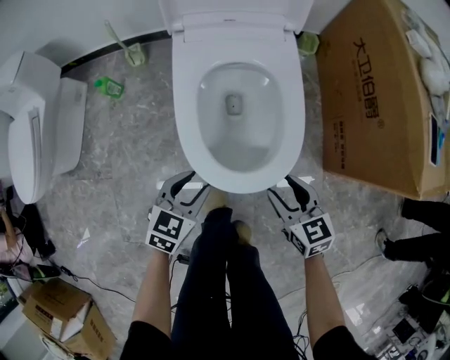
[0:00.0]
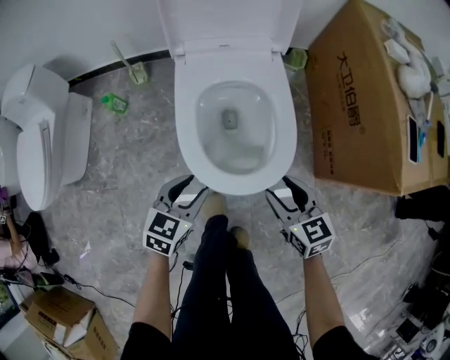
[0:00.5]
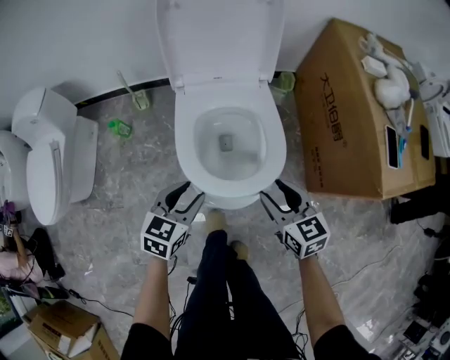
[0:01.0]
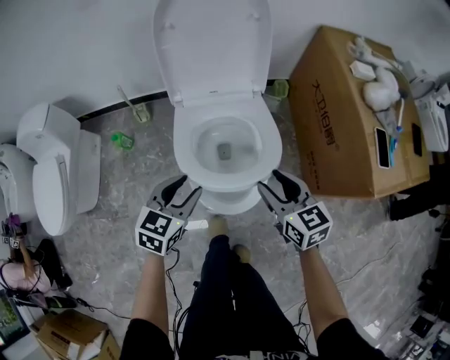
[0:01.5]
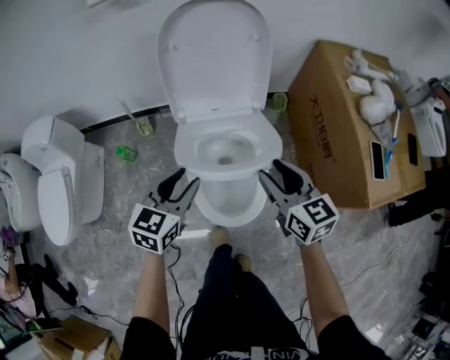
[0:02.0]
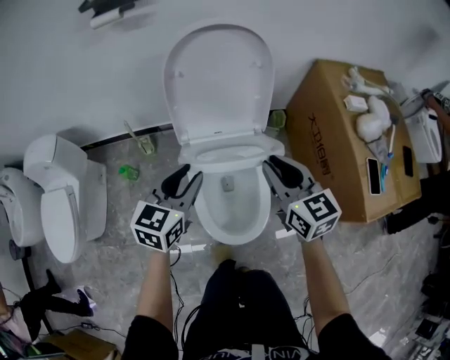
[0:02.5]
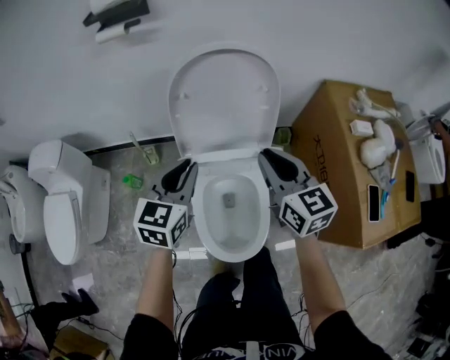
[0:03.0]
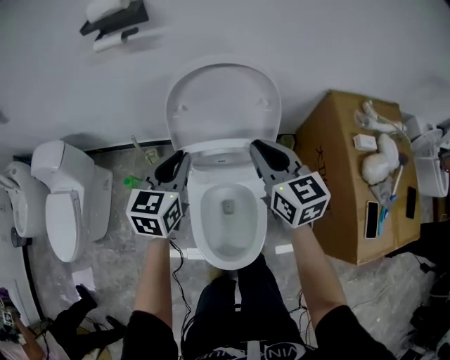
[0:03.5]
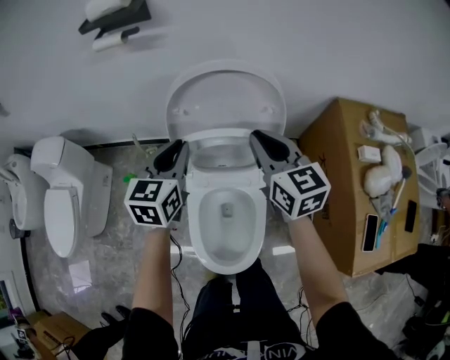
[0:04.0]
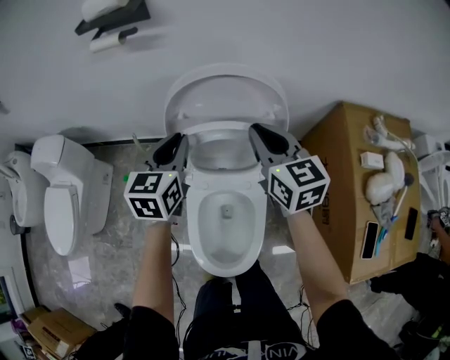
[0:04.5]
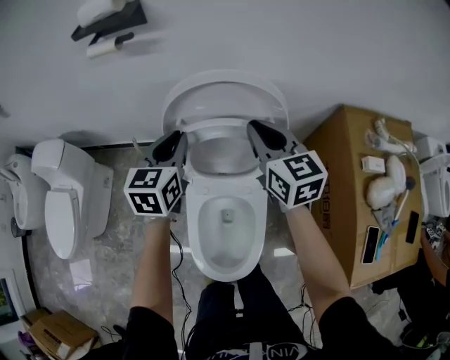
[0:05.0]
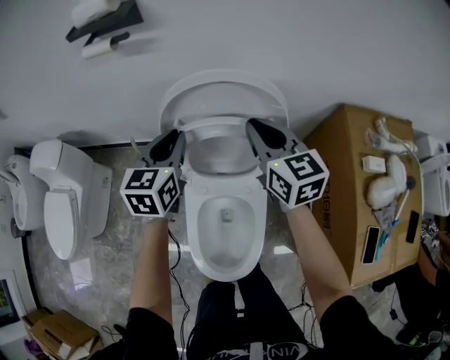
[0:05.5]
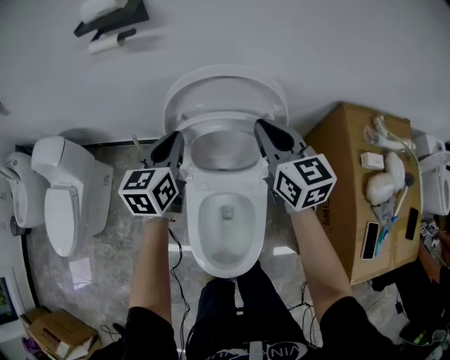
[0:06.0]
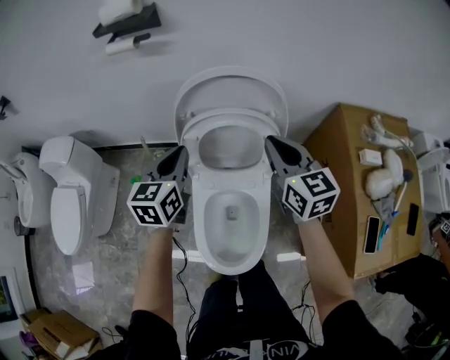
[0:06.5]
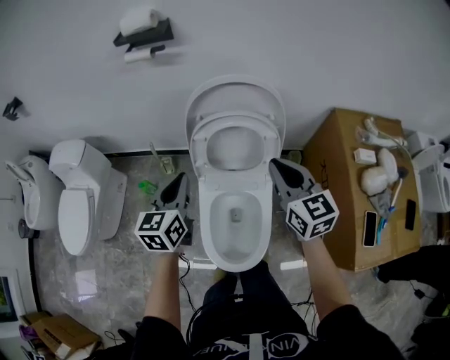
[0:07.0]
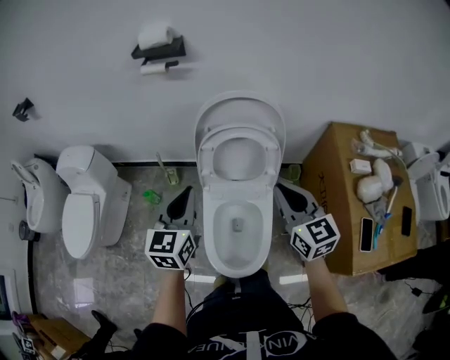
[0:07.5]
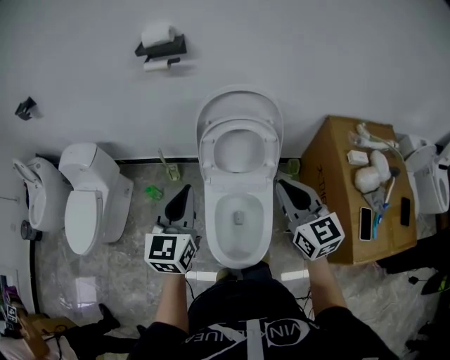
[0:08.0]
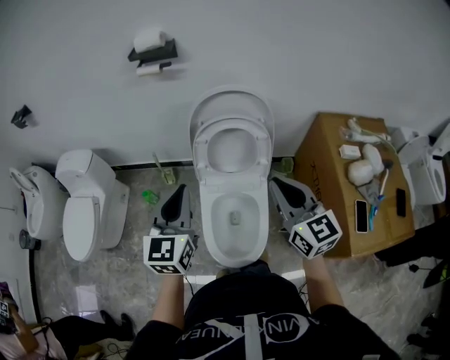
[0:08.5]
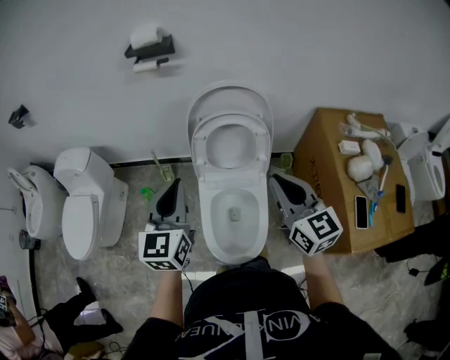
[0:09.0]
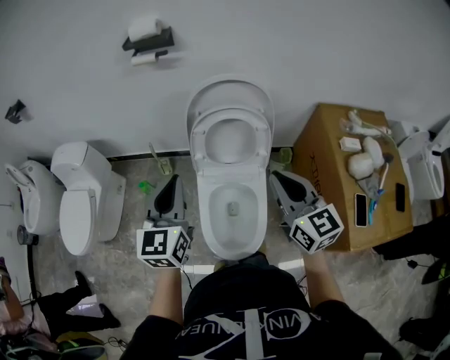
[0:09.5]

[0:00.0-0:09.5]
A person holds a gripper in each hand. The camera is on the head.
0:00.0 to 0:02.0: The grippers both shift upward and forward by roughly 35 cm.
0:02.0 to 0:04.0: The grippers both shift forward and upward by some 30 cm. The right gripper closes its fingers. The left gripper changes its angle by about 20 degrees, and closes its fingers.
0:04.0 to 0:05.5: The grippers both shift forward by about 5 cm.
0:05.5 to 0:07.5: The two grippers go about 20 cm backward.
0:07.5 to 0:09.5: The right gripper is displaced backward by about 5 cm; the left gripper shifts some 5 cm upward.

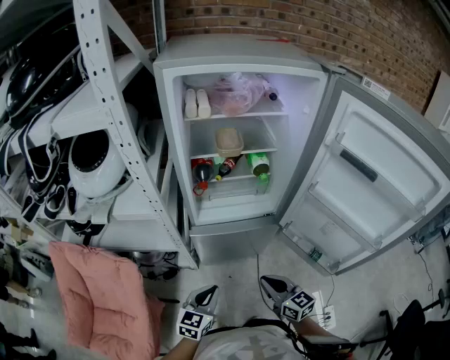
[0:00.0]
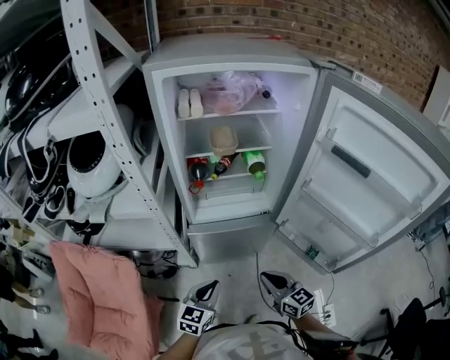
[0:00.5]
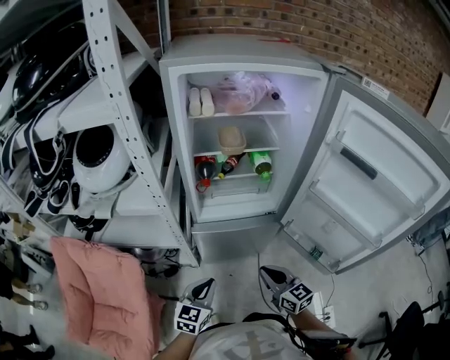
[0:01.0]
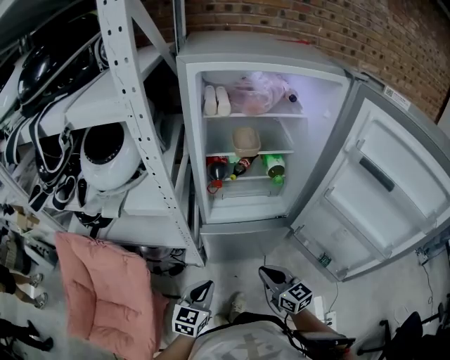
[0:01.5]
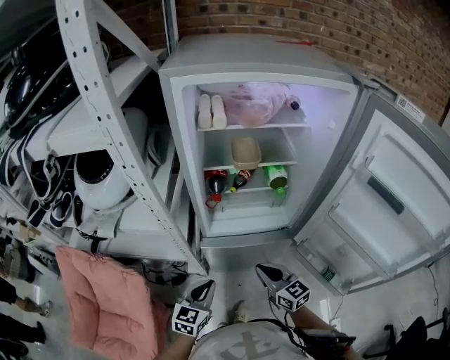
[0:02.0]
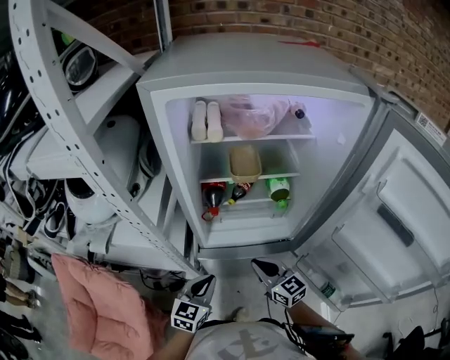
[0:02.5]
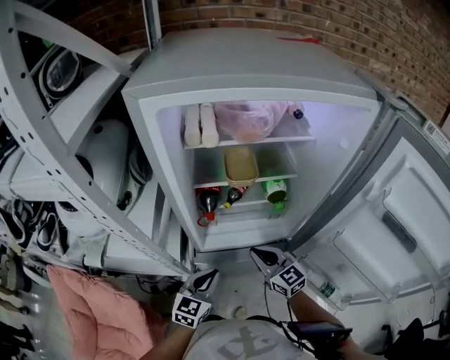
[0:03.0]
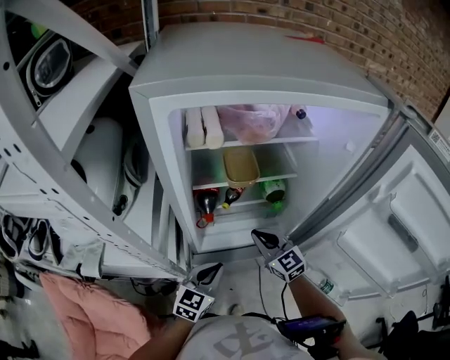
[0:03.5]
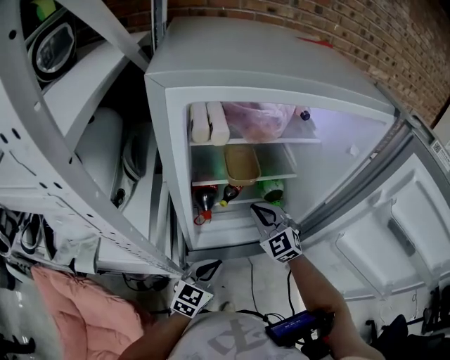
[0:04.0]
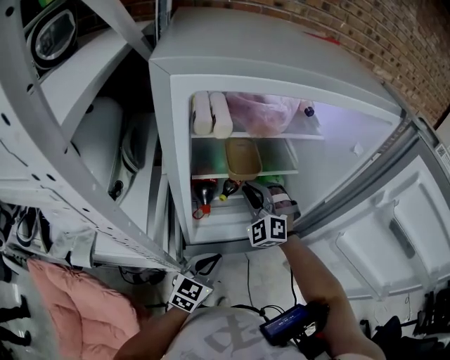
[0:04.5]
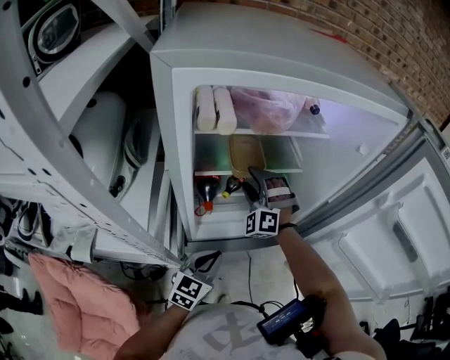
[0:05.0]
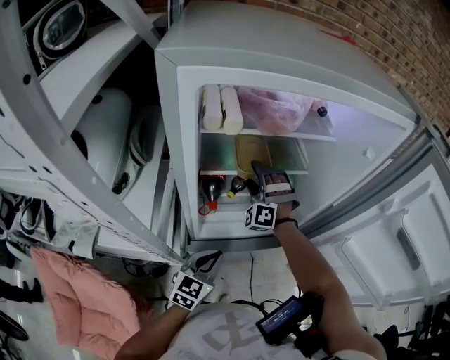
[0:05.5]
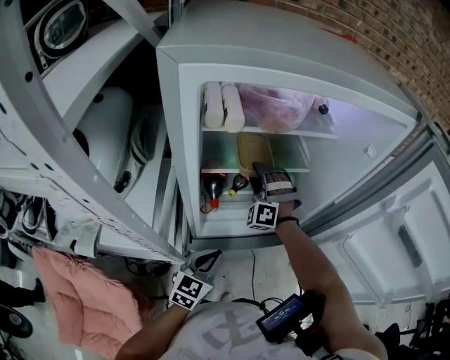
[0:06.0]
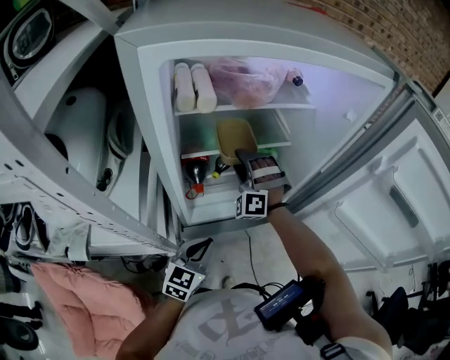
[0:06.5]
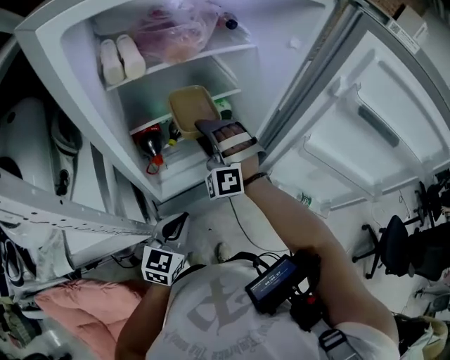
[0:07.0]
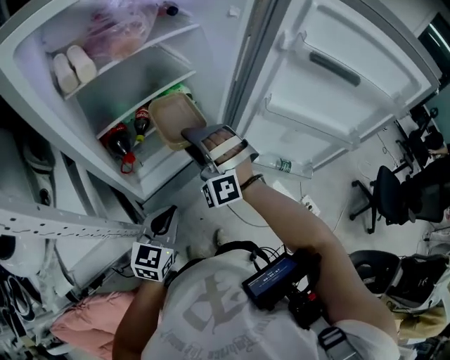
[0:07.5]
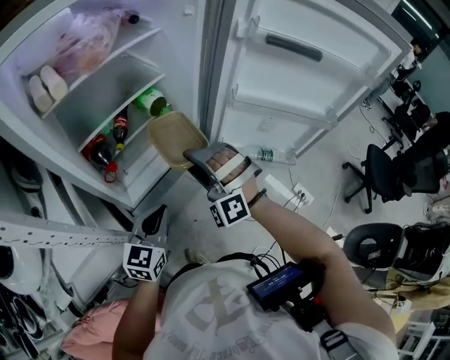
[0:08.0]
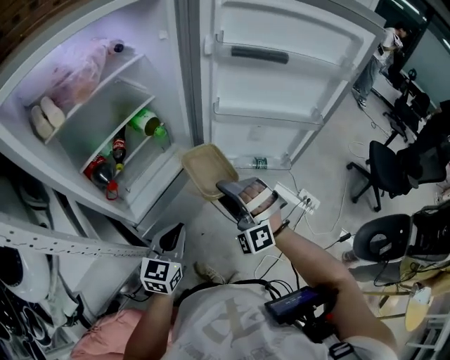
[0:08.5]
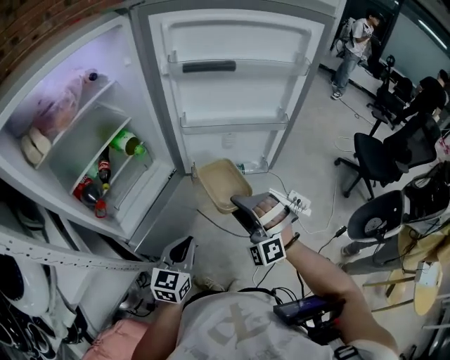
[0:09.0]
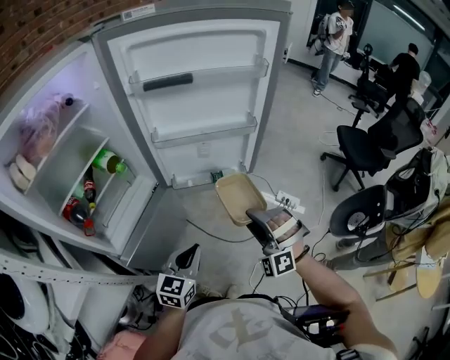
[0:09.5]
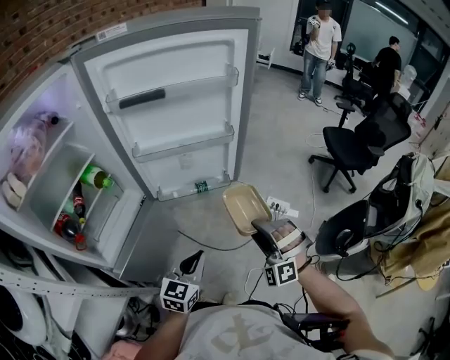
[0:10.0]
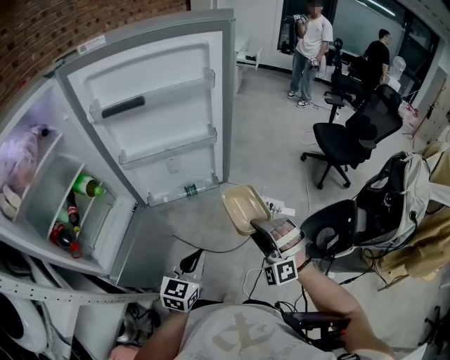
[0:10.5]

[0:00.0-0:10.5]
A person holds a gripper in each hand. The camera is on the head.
0:00.0 to 0:02.0: The two grippers go approximately 10 cm forward.
0:02.0 to 0:04.0: The left gripper travels forward by approximately 15 cm. Meanwhile the right gripper is displaced forward by roughly 30 cm, and rolls counterclockwise, seen from behind, by roughly 40 degrees.
0:04.0 to 0:06.5: The right gripper moves forward, roughly 5 cm, rotates around the line of its fingers by about 40 degrees, counterclockwise from behind, and opens its fingers.
0:06.5 to 0:08.5: The right gripper goes some 35 cm to the right and backward, and changes its angle by some 20 degrees; the left gripper is displaced to the right and backward by about 15 cm, and changes its angle by roughly 30 degrees.
0:08.5 to 0:10.5: The right gripper ends up roughly 35 cm from where it was, and turns by about 30 degrees; the left gripper shifts by approximately 25 cm, and changes its angle by roughly 20 degrees.

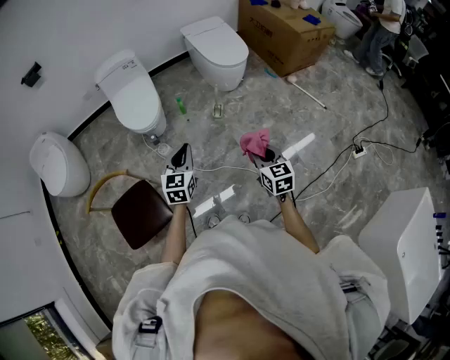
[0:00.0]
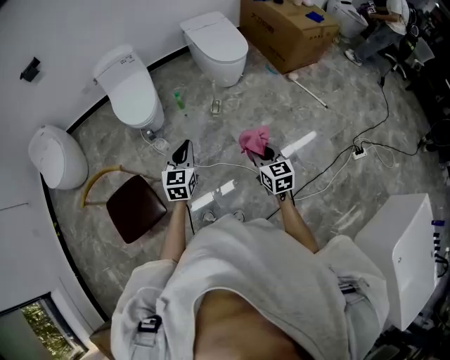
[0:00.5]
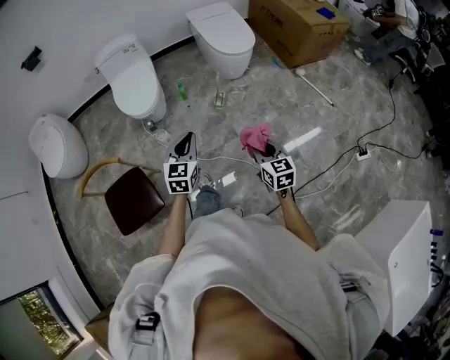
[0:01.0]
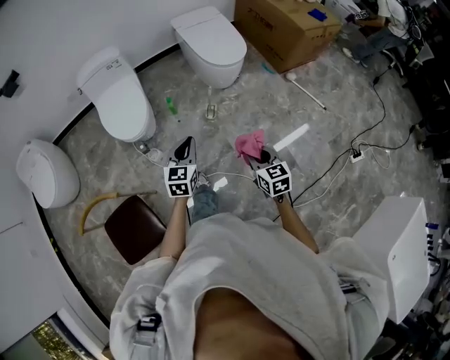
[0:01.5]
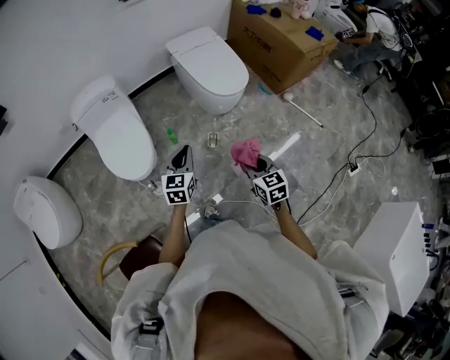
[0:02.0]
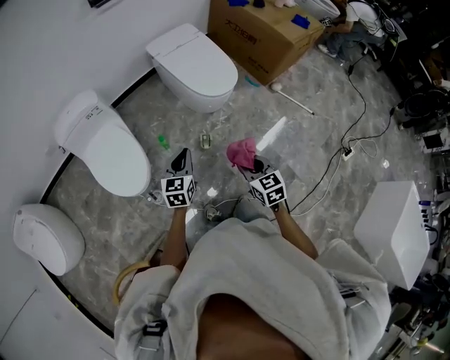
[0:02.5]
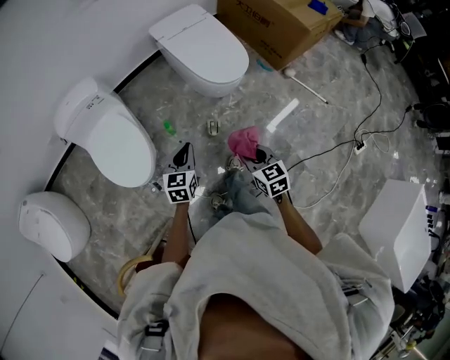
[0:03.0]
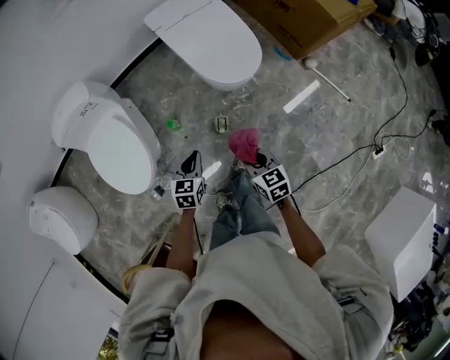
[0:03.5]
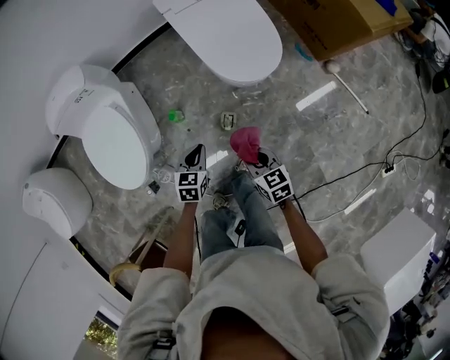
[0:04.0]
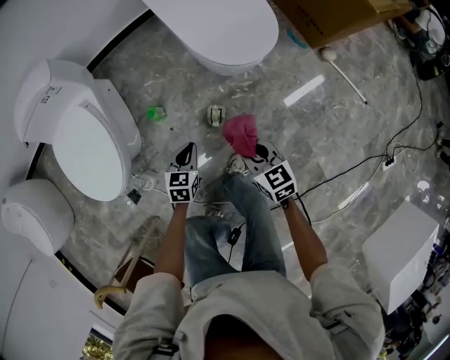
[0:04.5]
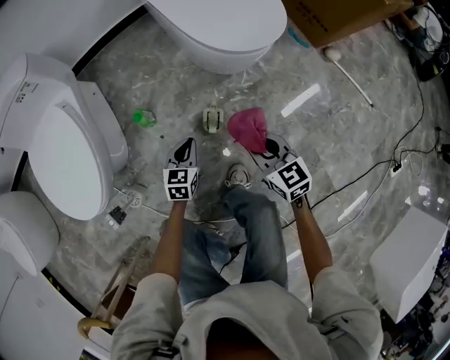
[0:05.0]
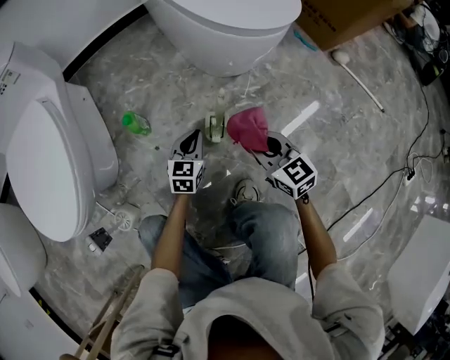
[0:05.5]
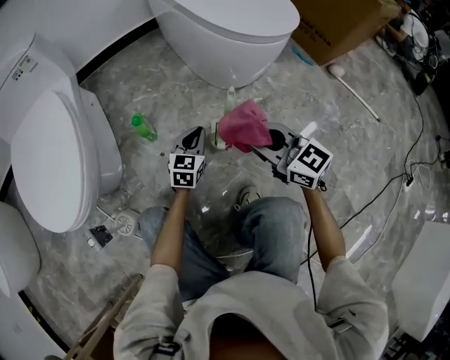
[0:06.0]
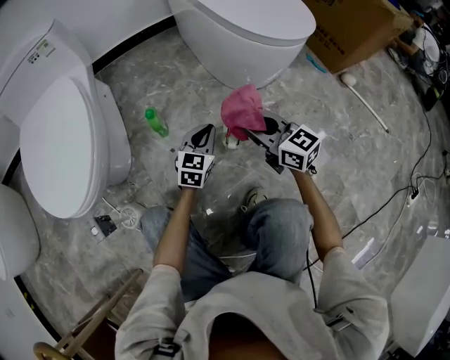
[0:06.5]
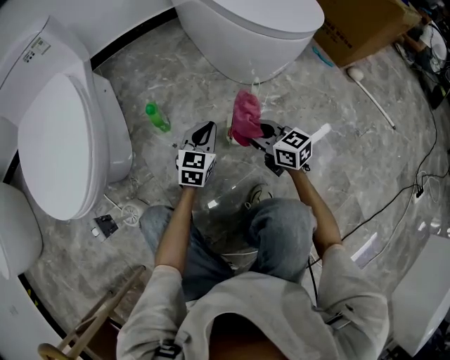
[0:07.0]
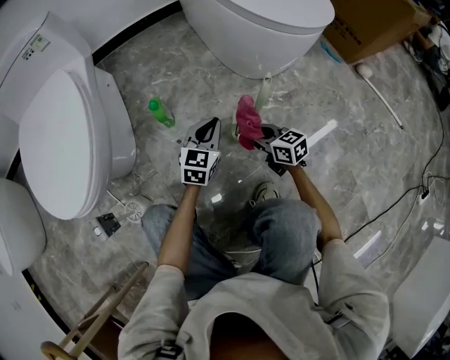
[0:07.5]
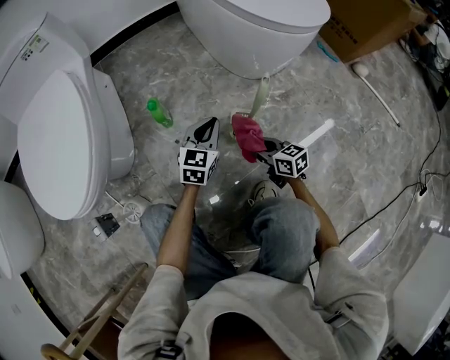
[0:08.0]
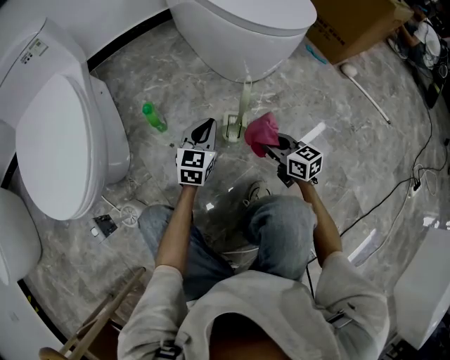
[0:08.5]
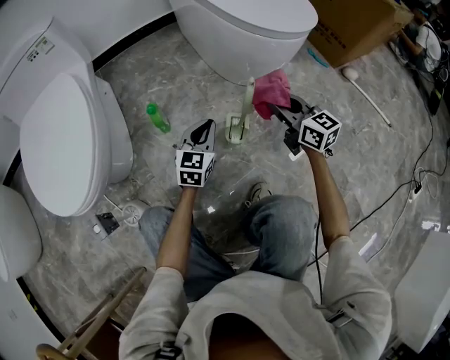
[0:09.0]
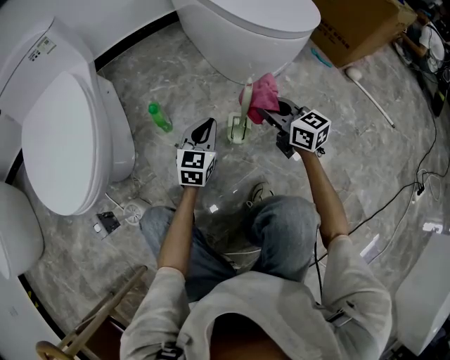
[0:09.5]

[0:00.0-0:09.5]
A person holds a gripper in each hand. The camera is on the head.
0:00.0 to 0:02.0: The grippers both shift forward by about 30 cm.
0:02.0 to 0:04.0: The two grippers go approximately 30 cm downward and forward. The right gripper turns by some 20 degrees; the left gripper swivels some 30 degrees.
0:04.0 to 0:05.5: Both grippers move downward, roughly 35 cm. The left gripper changes its angle by approximately 20 degrees. The right gripper changes its angle by about 20 degrees.
0:05.5 to 0:07.5: The right gripper shifts some 15 cm downward and to the left, and turns by approximately 20 degrees.
0:07.5 to 0:09.5: The right gripper goes some 15 cm upward.
